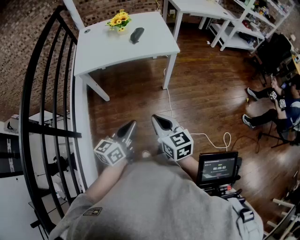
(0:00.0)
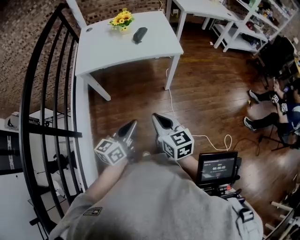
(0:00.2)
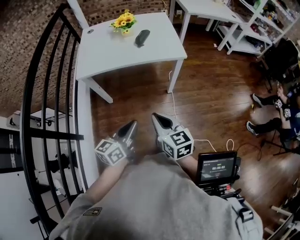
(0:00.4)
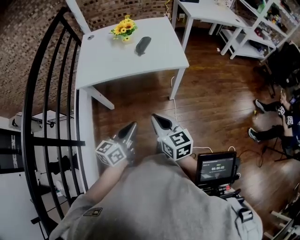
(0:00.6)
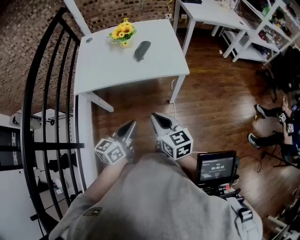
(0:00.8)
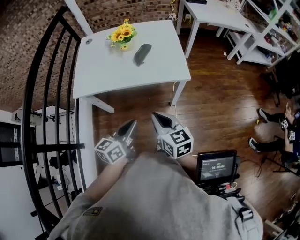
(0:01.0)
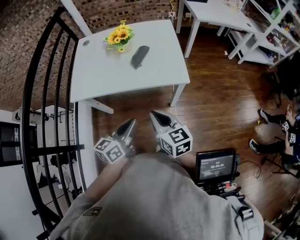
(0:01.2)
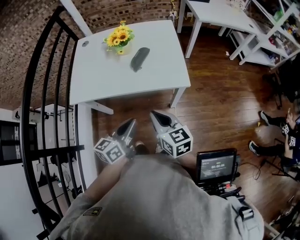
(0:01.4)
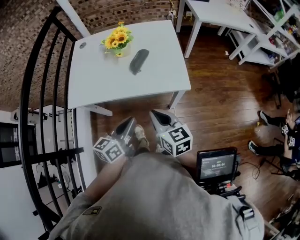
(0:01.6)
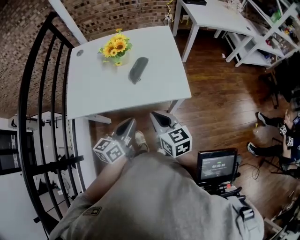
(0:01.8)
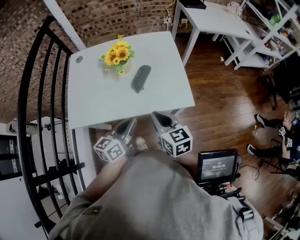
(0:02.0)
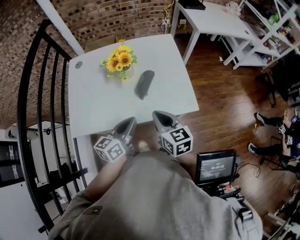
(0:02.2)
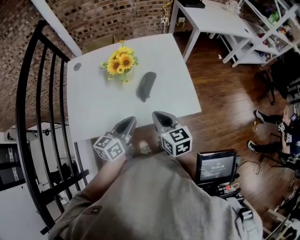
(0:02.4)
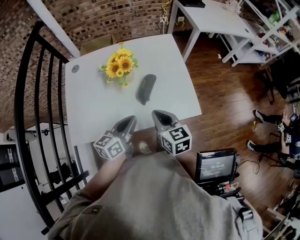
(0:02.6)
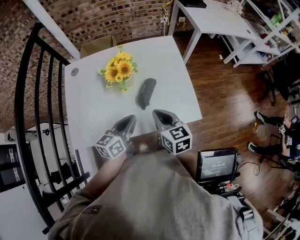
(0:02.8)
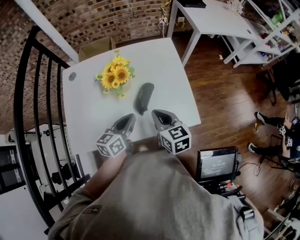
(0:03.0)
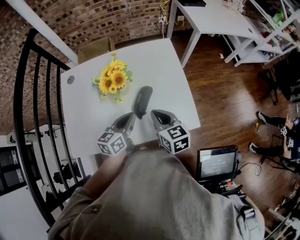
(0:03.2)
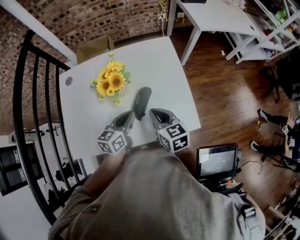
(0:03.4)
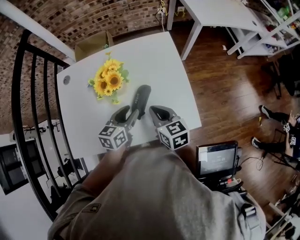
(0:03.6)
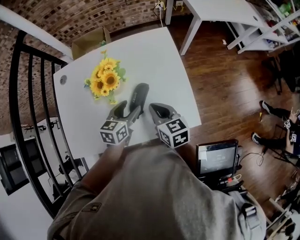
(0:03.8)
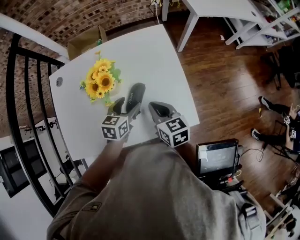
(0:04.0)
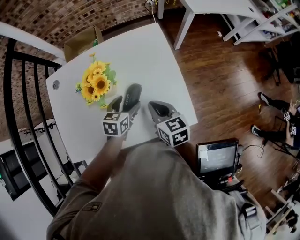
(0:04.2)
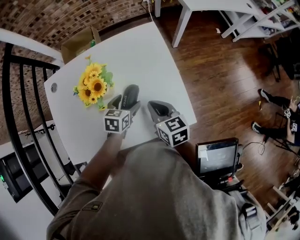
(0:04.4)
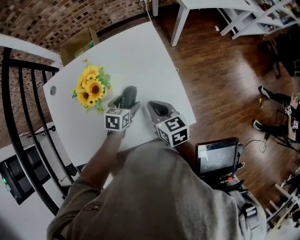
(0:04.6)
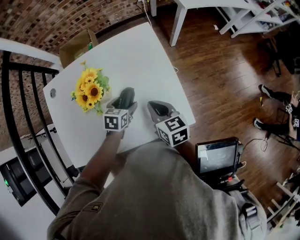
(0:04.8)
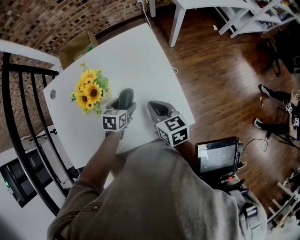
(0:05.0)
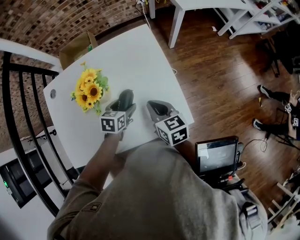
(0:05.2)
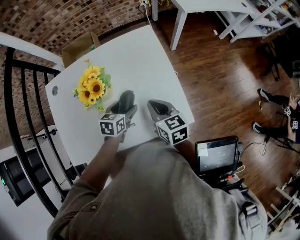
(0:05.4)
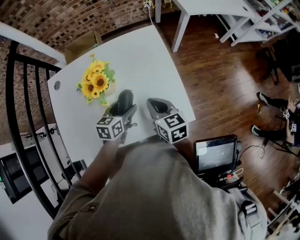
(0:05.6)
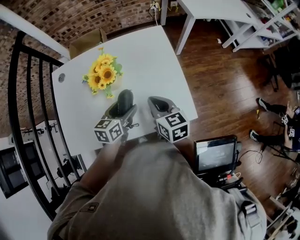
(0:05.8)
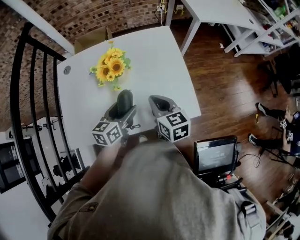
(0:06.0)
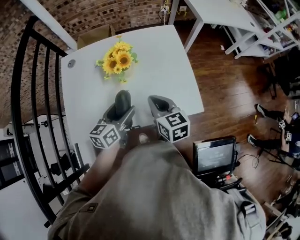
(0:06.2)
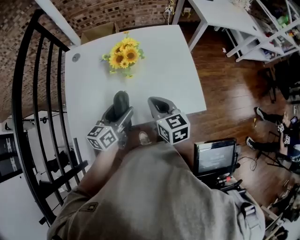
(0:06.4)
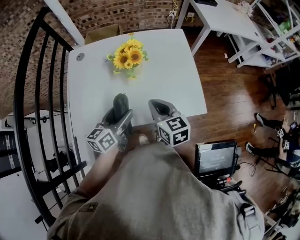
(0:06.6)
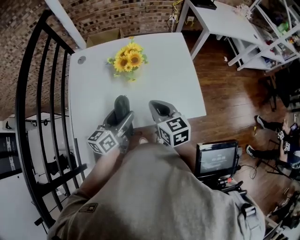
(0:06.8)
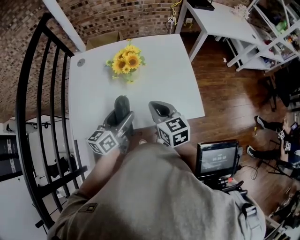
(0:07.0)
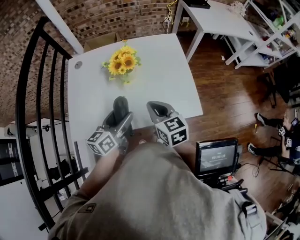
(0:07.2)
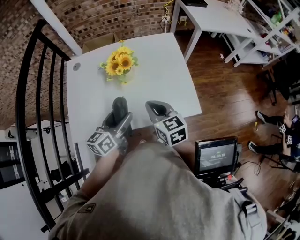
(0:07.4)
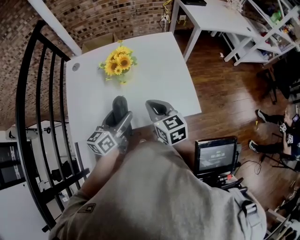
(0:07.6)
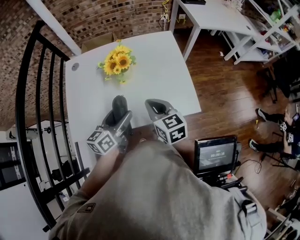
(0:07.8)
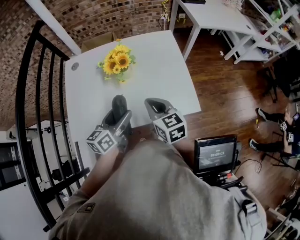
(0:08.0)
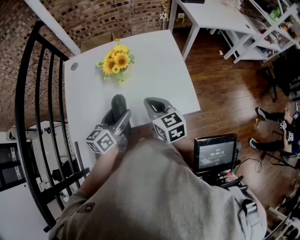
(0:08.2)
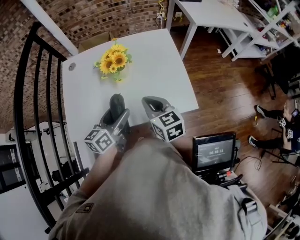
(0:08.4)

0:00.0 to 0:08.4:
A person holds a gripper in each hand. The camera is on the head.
0:00.0 to 0:01.4: The grippers both shift forward by about 30 cm.
0:01.4 to 0:02.8: The two grippers go about 25 cm forward.
0:02.8 to 0:04.2: The right gripper moves forward, downward and to the right, roughly 15 cm, while the left gripper is displaced forward, downward and to the right by roughly 20 cm, turns by roughly 30 degrees, and opens up.
0:04.2 to 0:05.6: The grippers move only a little.
0:05.6 to 0:07.0: The right gripper shifts about 15 cm to the left, backward and upward. Meanwhile the left gripper moves backward, to the left and upward, roughly 20 cm, and changes its angle by roughly 30 degrees.
0:07.0 to 0:08.4: The grippers move only a little.

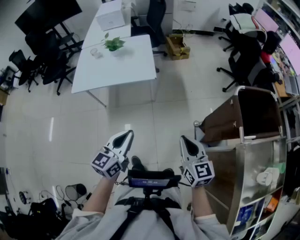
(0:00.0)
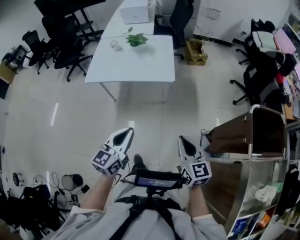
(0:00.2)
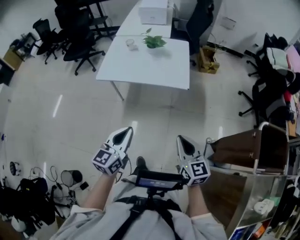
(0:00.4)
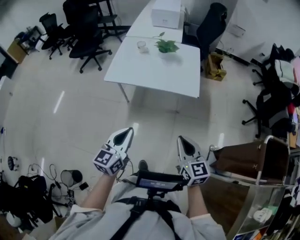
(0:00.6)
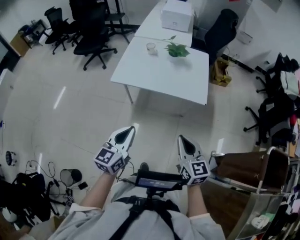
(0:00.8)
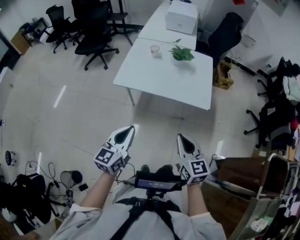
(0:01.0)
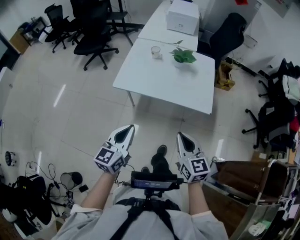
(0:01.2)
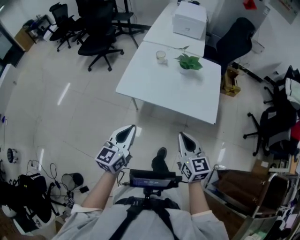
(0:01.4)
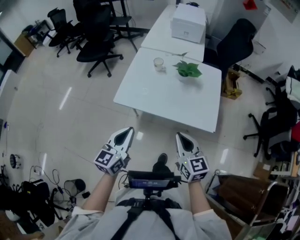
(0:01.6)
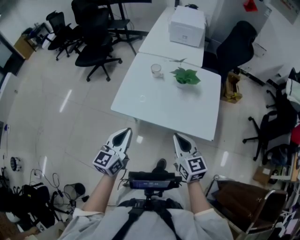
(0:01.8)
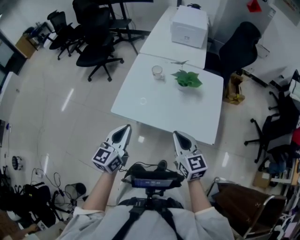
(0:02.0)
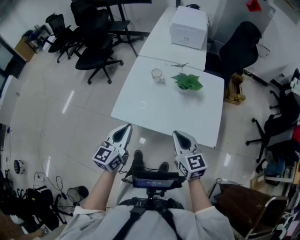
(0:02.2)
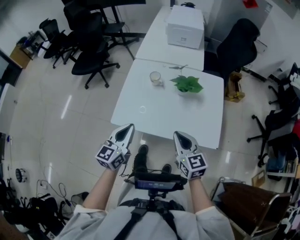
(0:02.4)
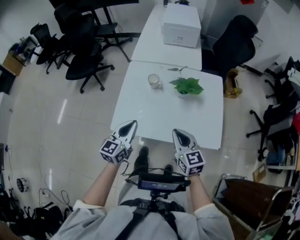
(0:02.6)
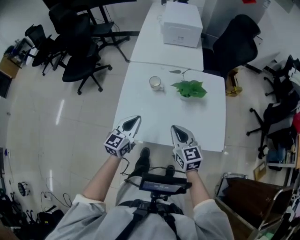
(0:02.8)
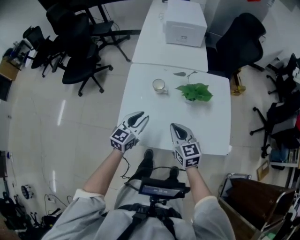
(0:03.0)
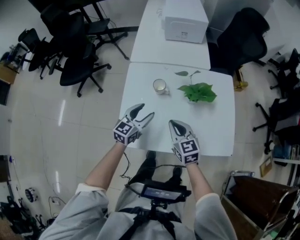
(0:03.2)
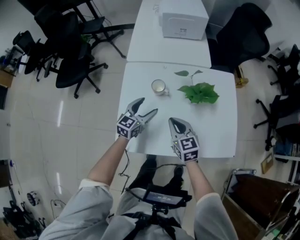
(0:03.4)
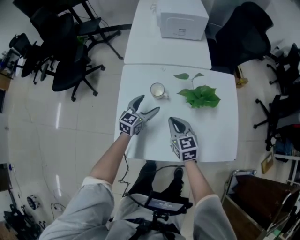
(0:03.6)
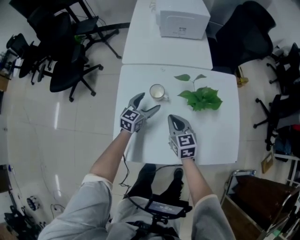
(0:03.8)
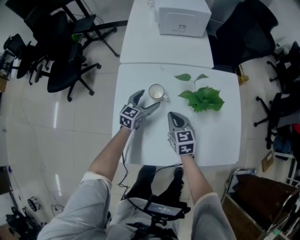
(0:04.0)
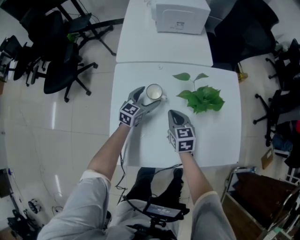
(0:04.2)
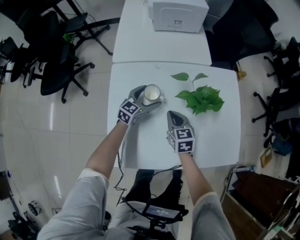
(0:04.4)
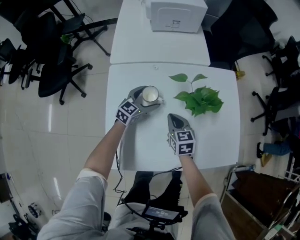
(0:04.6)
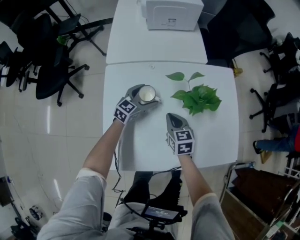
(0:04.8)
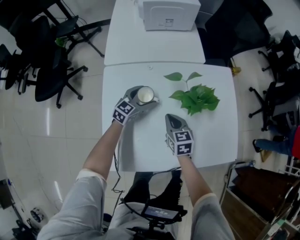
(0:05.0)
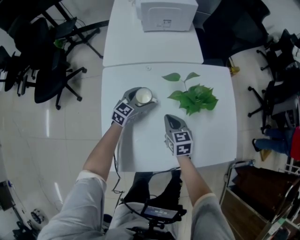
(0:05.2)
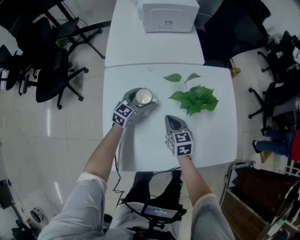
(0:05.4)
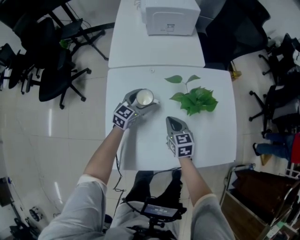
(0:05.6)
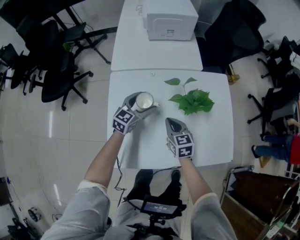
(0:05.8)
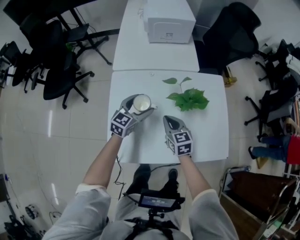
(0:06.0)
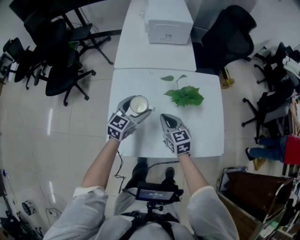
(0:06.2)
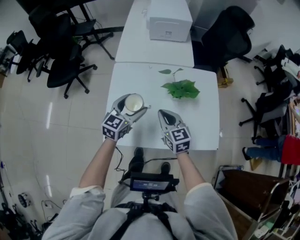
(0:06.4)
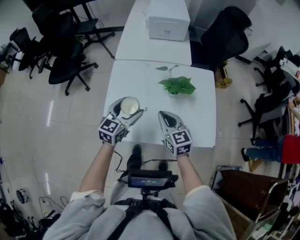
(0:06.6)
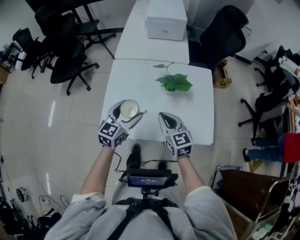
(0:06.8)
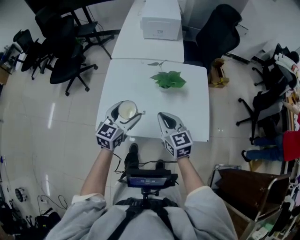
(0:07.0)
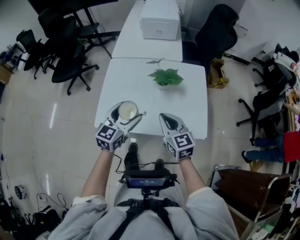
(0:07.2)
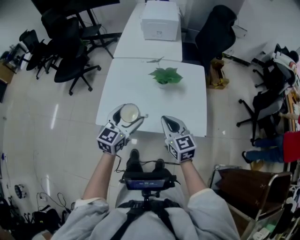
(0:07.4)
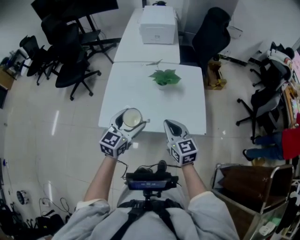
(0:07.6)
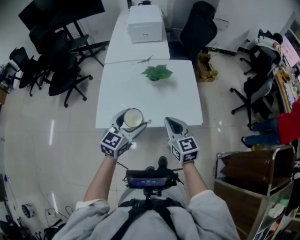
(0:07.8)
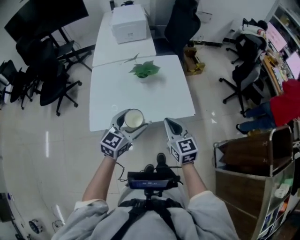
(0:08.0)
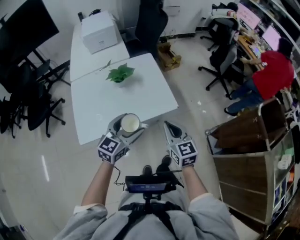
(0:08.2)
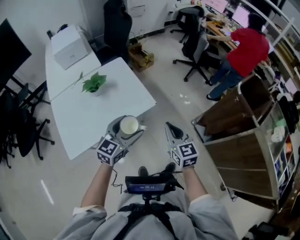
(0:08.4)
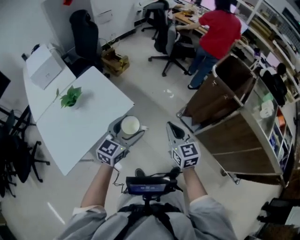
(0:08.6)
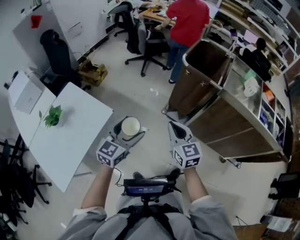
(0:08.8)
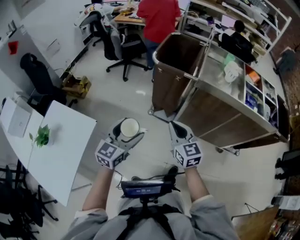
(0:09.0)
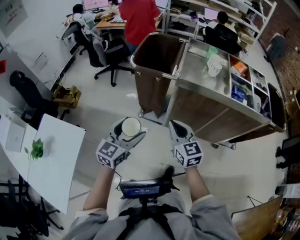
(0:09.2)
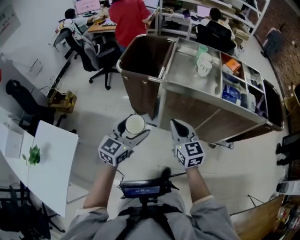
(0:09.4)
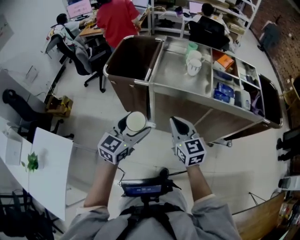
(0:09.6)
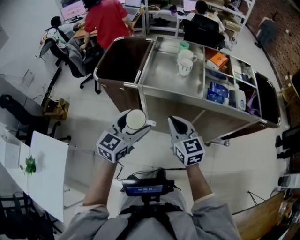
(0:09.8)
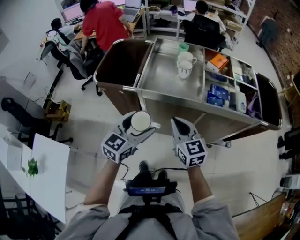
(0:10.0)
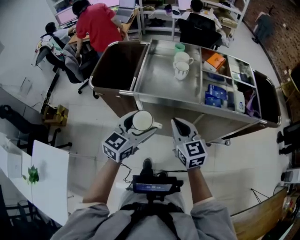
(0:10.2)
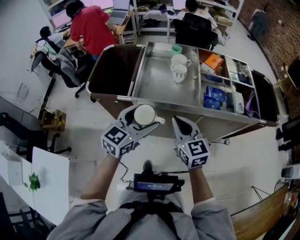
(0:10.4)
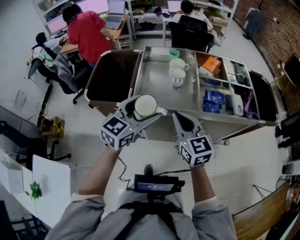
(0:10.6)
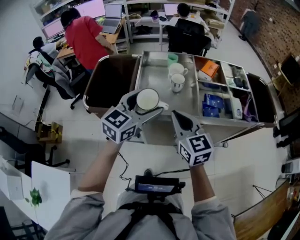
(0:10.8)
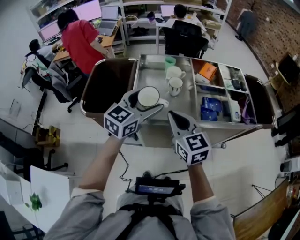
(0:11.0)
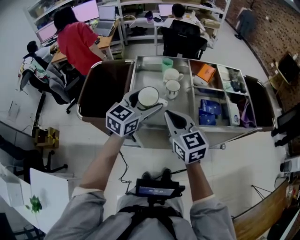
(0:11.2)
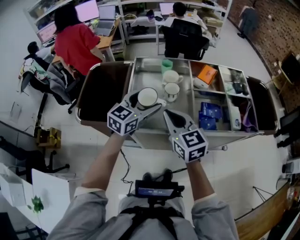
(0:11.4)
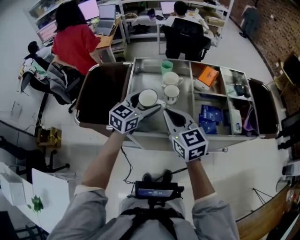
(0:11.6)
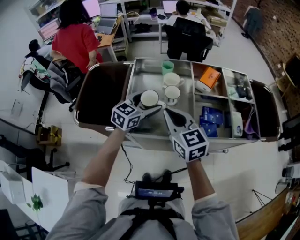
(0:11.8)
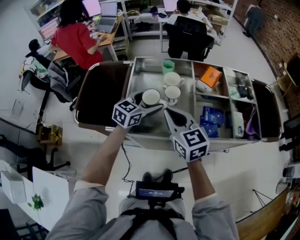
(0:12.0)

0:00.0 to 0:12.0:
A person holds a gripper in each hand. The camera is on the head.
0:00.0 to 0:01.6: Both grippers are carried forward and to the left, some 50 cm. The left gripper rotates approximately 20 degrees.
0:01.6 to 0:03.0: The grippers both shift forward by about 30 cm. The left gripper swivels roughly 20 degrees.
0:03.0 to 0:04.4: Both grippers travel together forward and downward, approximately 25 cm. The left gripper opens.
0:04.4 to 0:06.0: The right gripper travels upward by roughly 5 cm; the left gripper goes approximately 15 cm upward and backward.
0:06.0 to 0:07.6: The right gripper heads backward, upward and to the right, covering about 35 cm; the left gripper moves backward and upward, approximately 35 cm.
0:07.6 to 0:09.0: Both grippers are carried approximately 60 cm. The left gripper swivels roughly 80 degrees, while the right gripper changes its angle by some 80 degrees.
0:09.0 to 0:10.4: The grippers both shift to the right and forward by about 40 cm. The left gripper changes its angle by about 30 degrees.
0:10.4 to 0:12.0: The left gripper heads forward, covering some 25 cm; the right gripper goes approximately 15 cm forward.

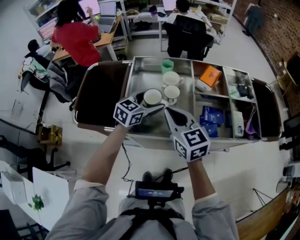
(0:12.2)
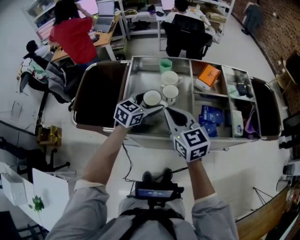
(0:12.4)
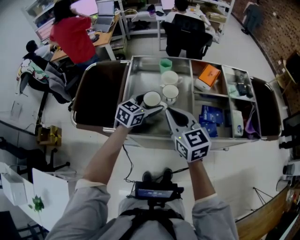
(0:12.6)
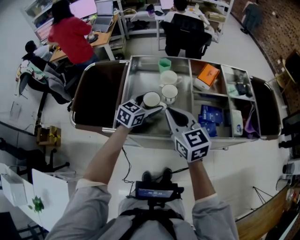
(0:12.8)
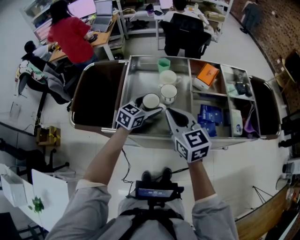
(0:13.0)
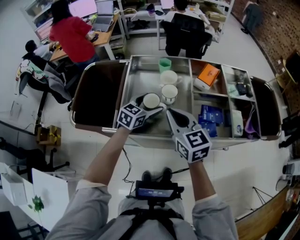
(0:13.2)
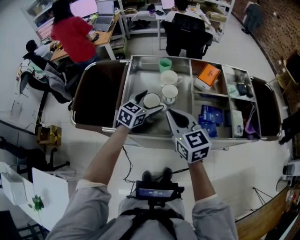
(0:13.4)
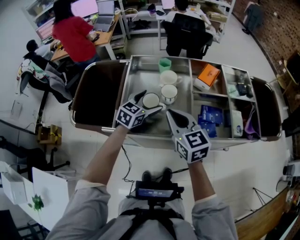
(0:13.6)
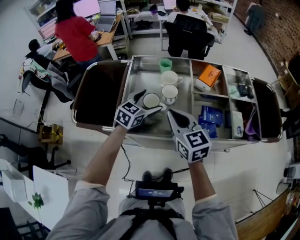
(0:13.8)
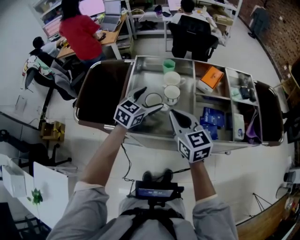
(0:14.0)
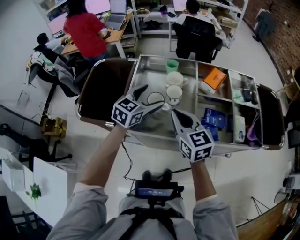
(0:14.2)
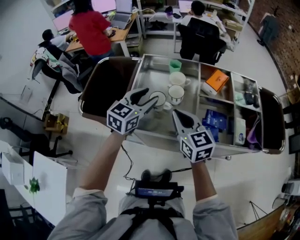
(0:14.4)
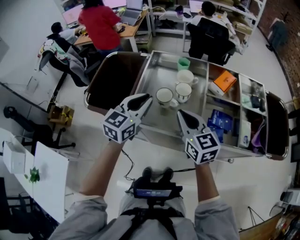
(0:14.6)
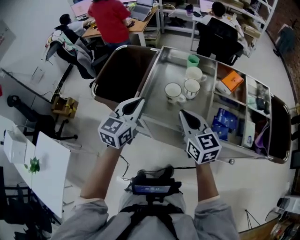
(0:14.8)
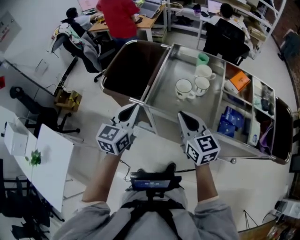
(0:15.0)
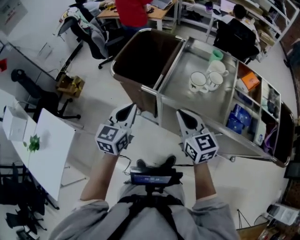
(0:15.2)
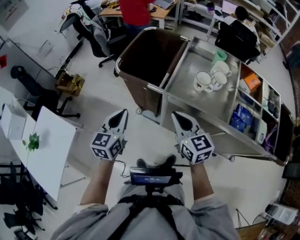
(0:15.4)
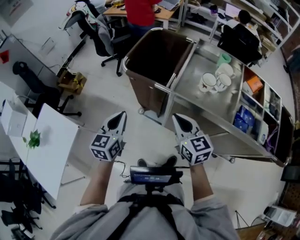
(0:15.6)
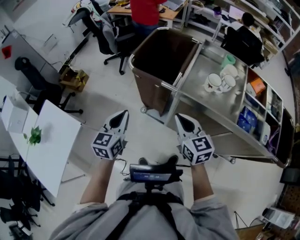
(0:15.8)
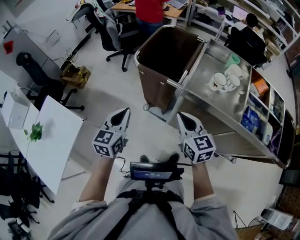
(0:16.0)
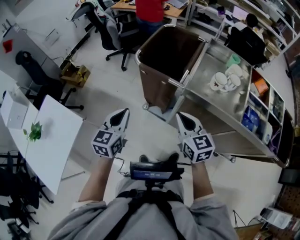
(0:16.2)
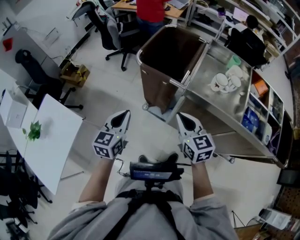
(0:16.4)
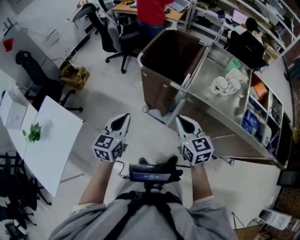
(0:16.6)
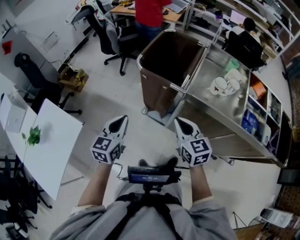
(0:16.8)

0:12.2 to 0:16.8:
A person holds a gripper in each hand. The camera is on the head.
0:12.2 to 0:13.8: The grippers move only a little.
0:13.8 to 0:15.2: The left gripper ends up roughly 35 cm from where it was, rotates approximately 40 degrees, and closes its fingers, while the right gripper changes place by roughly 15 cm.
0:15.2 to 0:16.8: Both grippers move to the left, about 15 cm.
